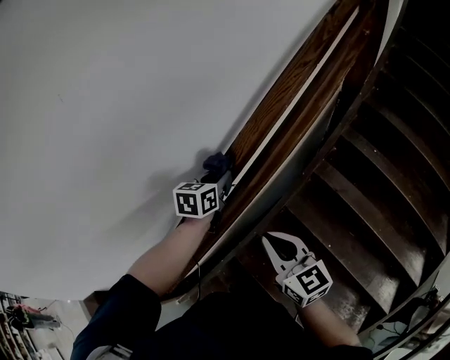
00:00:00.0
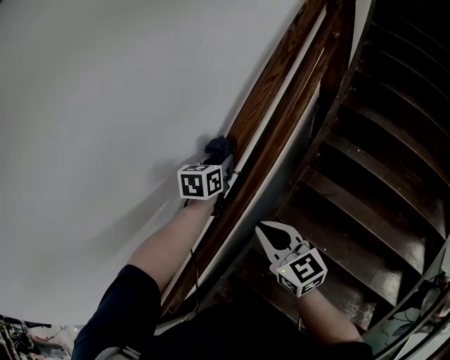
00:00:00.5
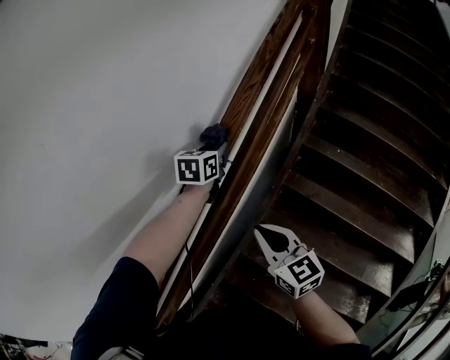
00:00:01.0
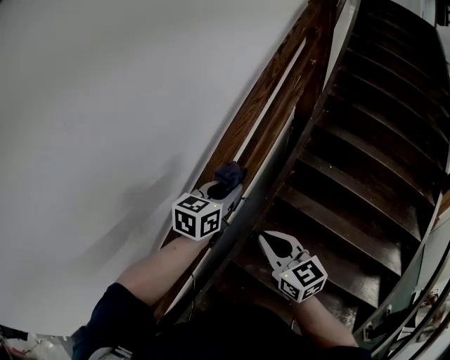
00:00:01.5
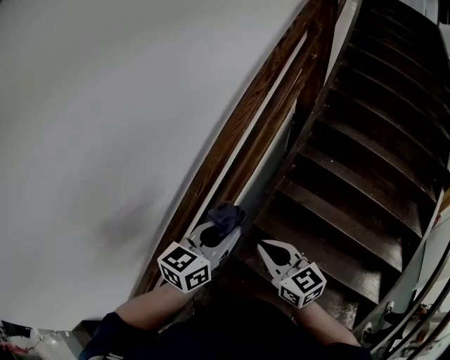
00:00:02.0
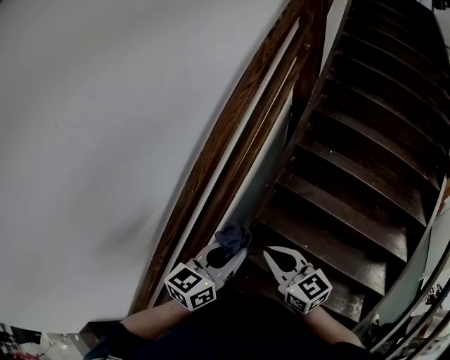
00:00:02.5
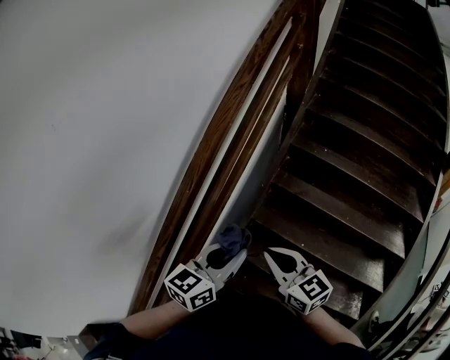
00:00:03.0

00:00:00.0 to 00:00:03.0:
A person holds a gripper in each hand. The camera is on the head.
00:00:00.0 to 00:00:01.5: The right gripper travels upward and to the right by some 10 cm. Meanwhile the left gripper moves upward, to the right and backward, approximately 20 cm, and turns by roughly 30 degrees.
00:00:01.5 to 00:00:03.0: The left gripper is displaced backward by approximately 20 cm. Meanwhile the right gripper shifts roughly 10 cm backward.

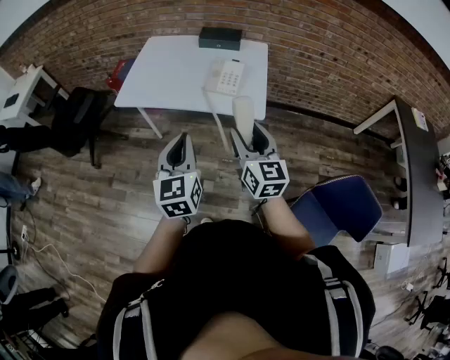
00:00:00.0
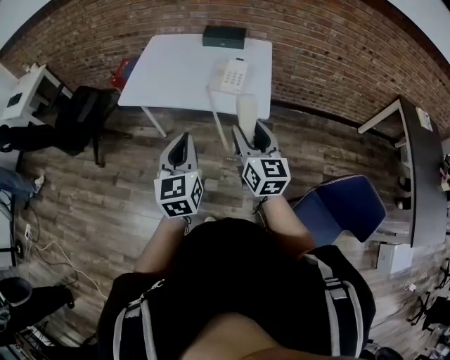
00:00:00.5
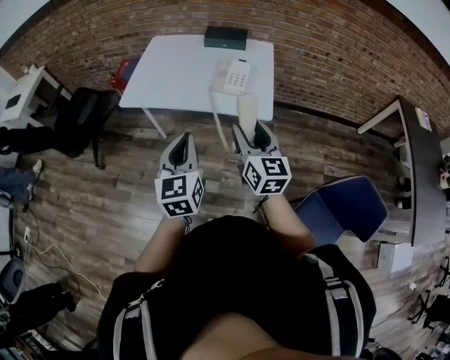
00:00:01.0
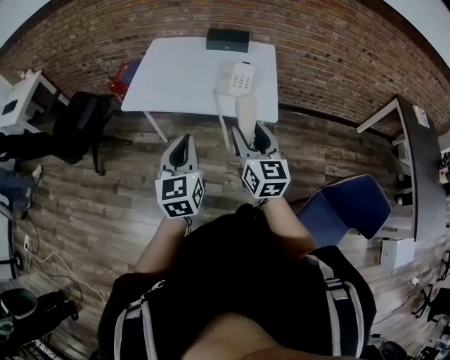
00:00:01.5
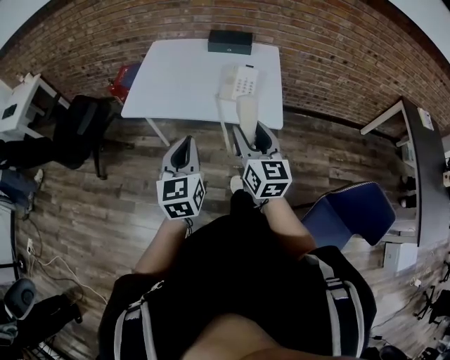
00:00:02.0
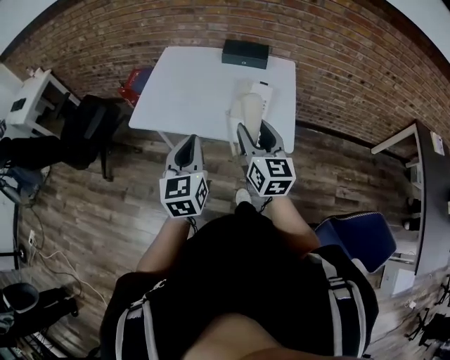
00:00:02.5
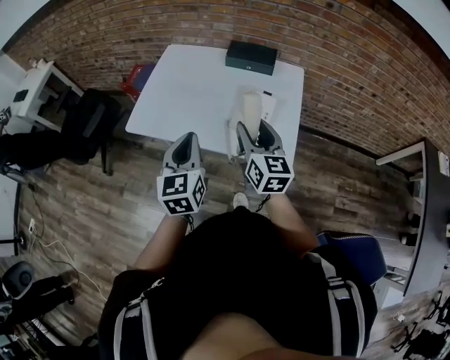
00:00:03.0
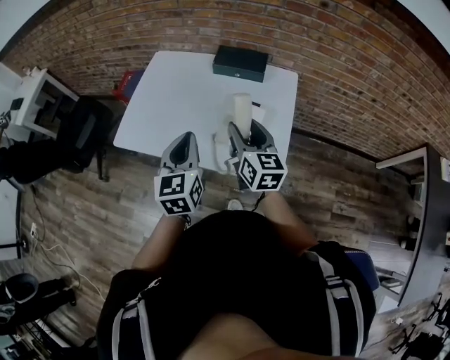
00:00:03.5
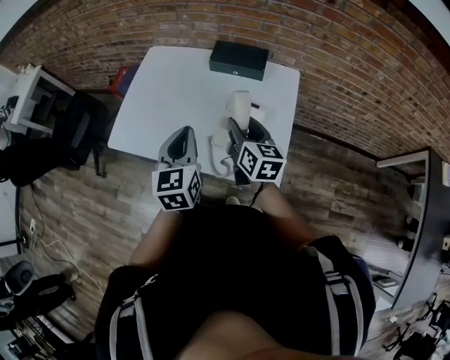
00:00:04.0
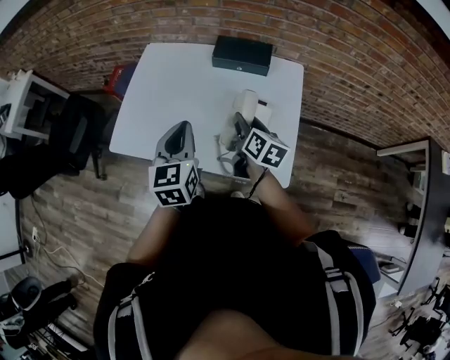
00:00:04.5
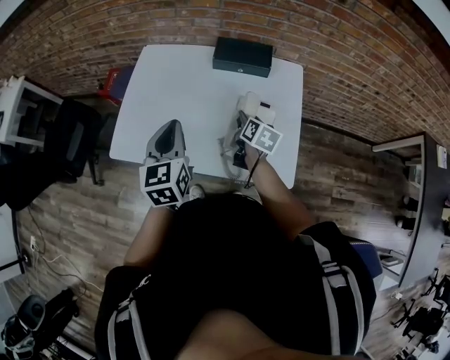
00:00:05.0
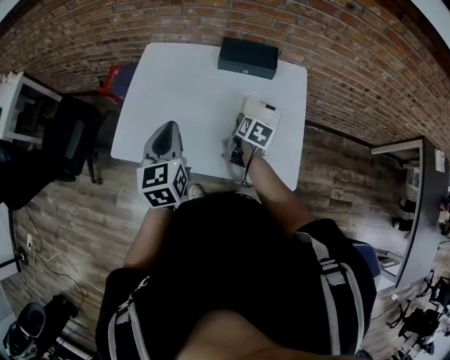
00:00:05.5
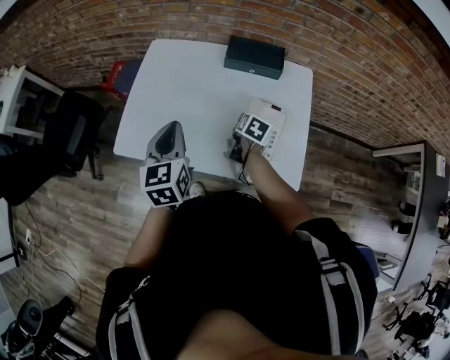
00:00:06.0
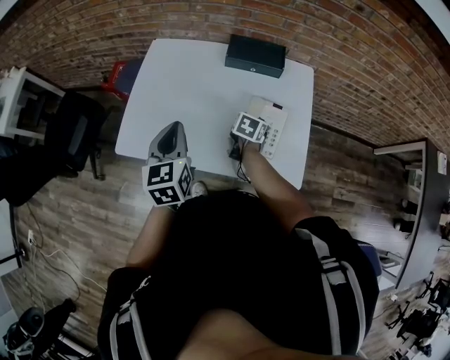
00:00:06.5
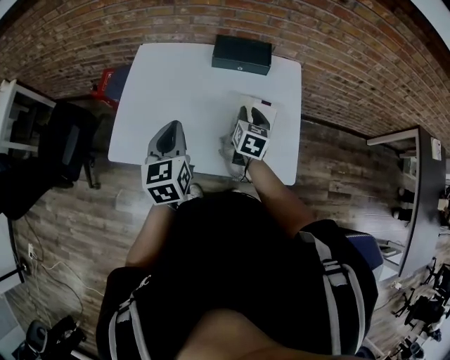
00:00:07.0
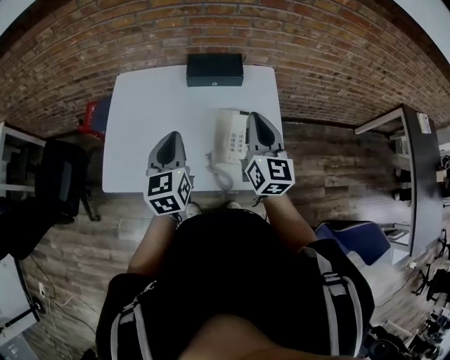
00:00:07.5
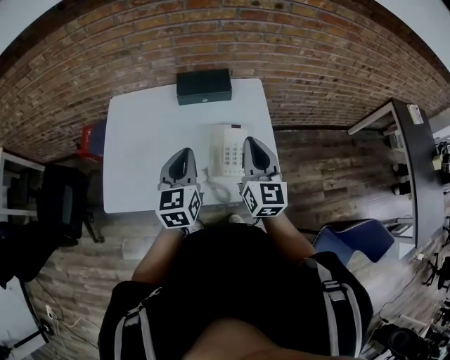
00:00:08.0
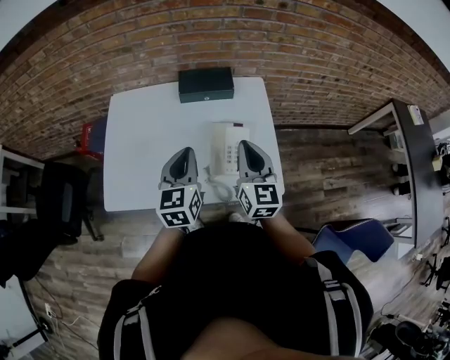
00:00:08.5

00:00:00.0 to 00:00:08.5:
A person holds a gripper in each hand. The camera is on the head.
00:00:00.0 to 00:00:02.0: The grippers both shift forward and to the left by approximately 10 cm.
00:00:02.0 to 00:00:04.0: Both grippers move forward, approximately 30 cm. The right gripper rotates some 20 degrees.
00:00:04.0 to 00:00:06.5: The left gripper is displaced to the left by roughly 15 cm; the right gripper heads downward and forward, covering roughly 20 cm, and angles its fingers downward, by about 40 degrees.
00:00:06.5 to 00:00:08.5: The left gripper heads to the right, covering some 10 cm, and changes its angle by approximately 20 degrees, while the right gripper goes about 25 cm upward, tips its fingers upward by approximately 50 degrees, and closes up.

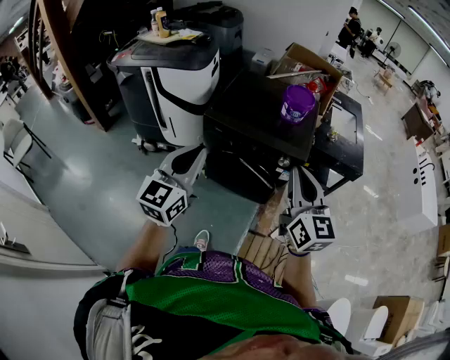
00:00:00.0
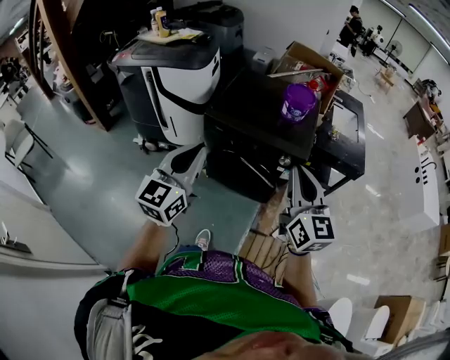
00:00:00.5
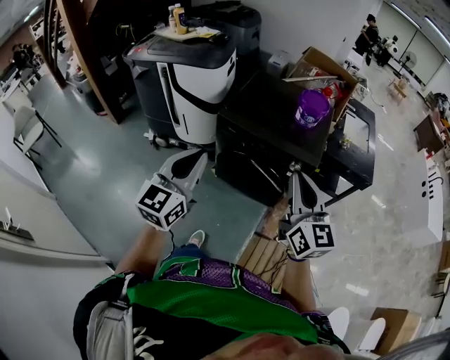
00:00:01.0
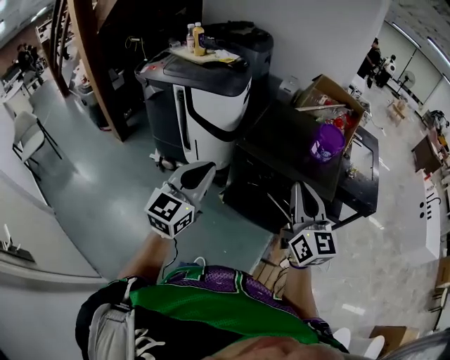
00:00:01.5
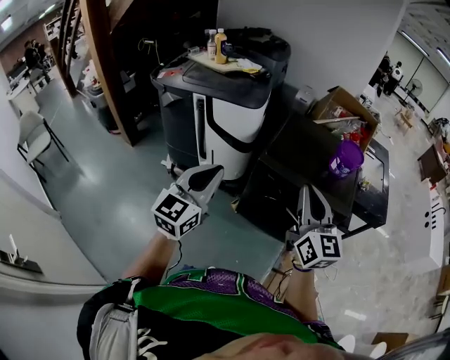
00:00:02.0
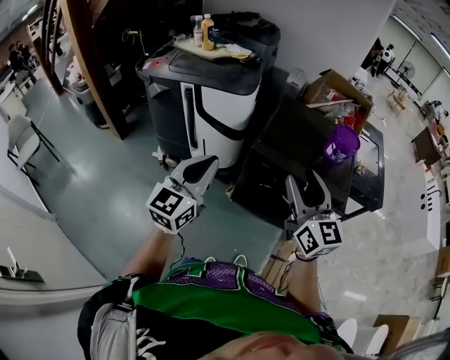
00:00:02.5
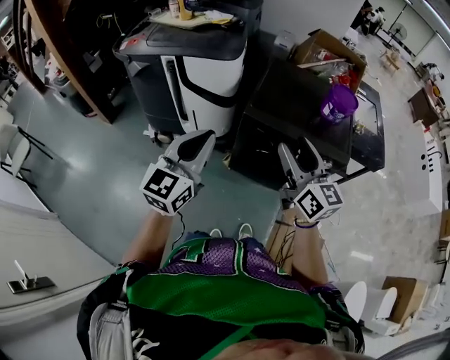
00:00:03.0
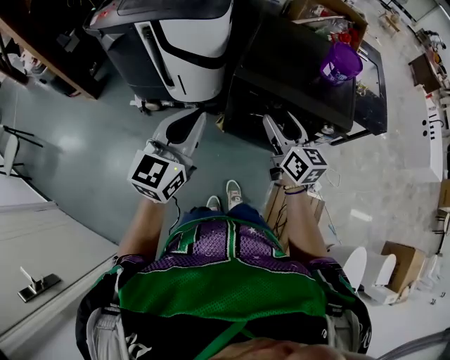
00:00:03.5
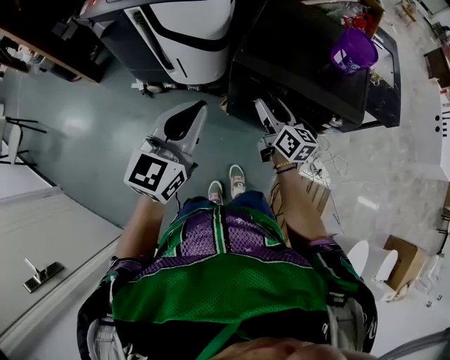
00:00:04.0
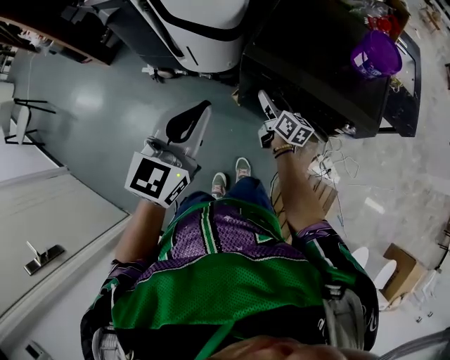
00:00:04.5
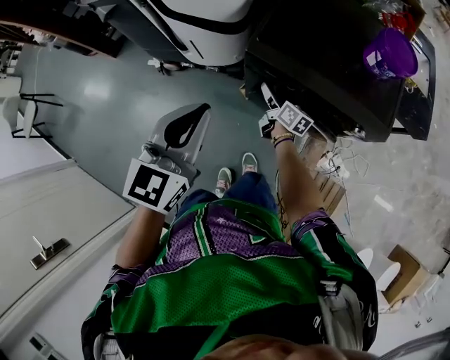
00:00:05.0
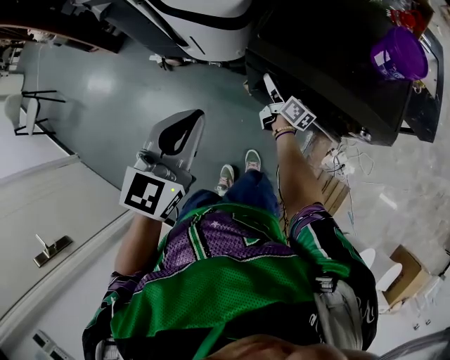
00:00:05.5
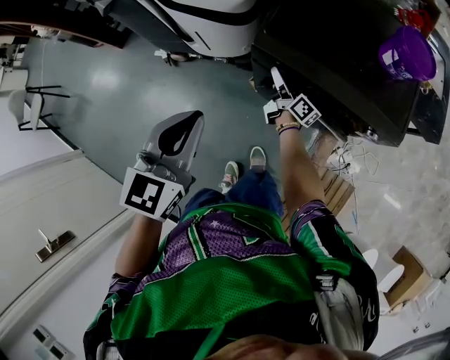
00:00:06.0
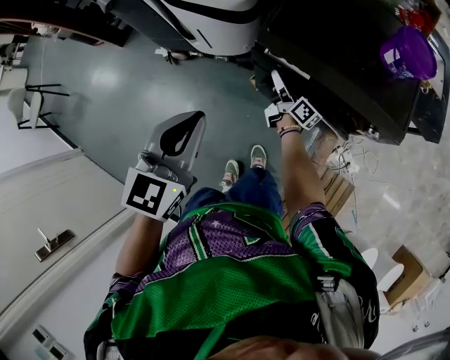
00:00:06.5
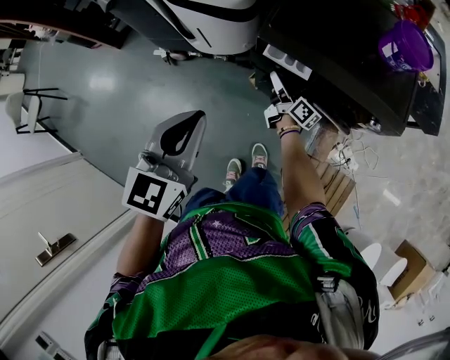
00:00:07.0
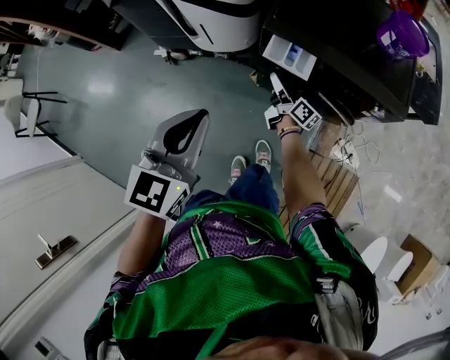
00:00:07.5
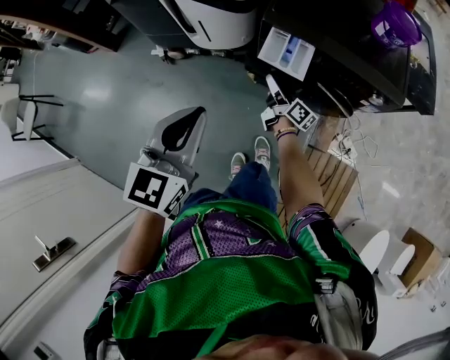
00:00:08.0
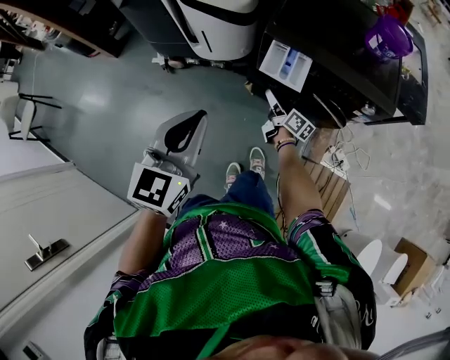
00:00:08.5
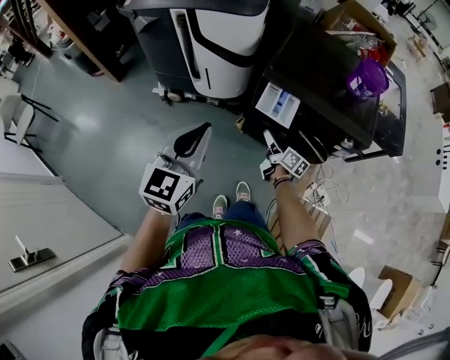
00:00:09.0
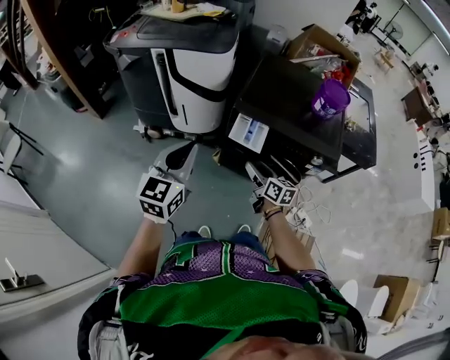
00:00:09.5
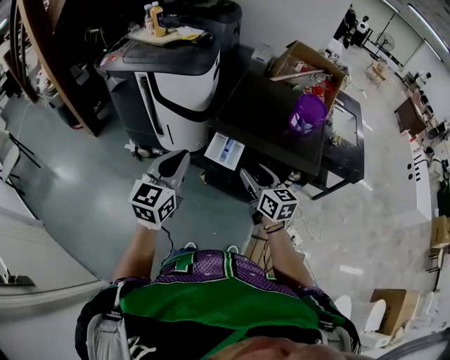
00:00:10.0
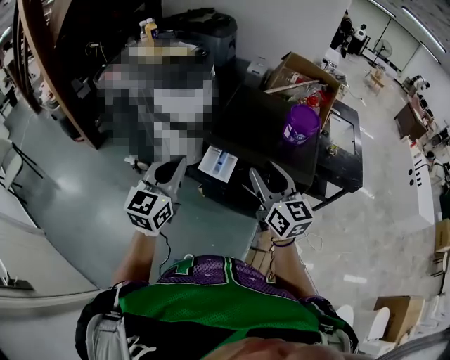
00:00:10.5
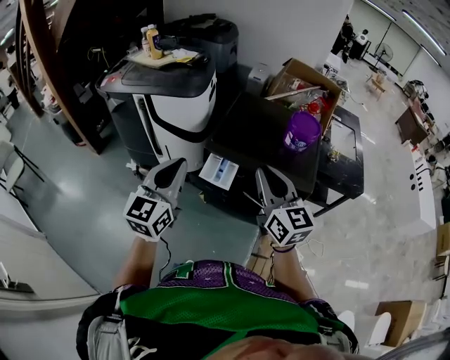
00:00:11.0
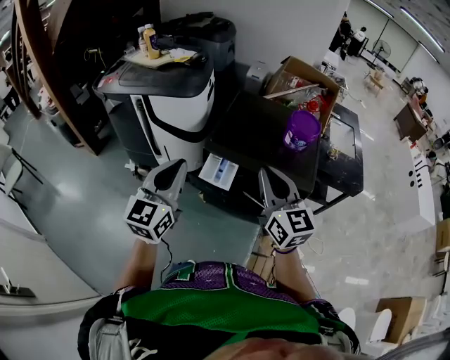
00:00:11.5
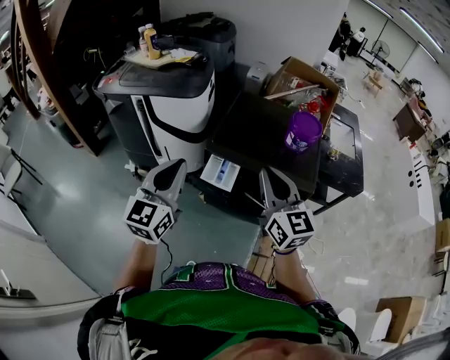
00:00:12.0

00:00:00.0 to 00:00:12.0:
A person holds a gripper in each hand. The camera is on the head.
00:00:00.0 to 00:00:02.0: The left gripper travels to the left by some 25 cm. Meanwhile the right gripper heads to the left and forward, covering roughly 25 cm.
00:00:02.0 to 00:00:04.0: The left gripper travels downward, forward and to the right by approximately 15 cm, while the right gripper moves downward and forward, approximately 35 cm, changes its angle by some 40 degrees, and opens its fingers.
00:00:04.0 to 00:00:06.0: The left gripper heads downward, covering approximately 10 cm, while the right gripper goes roughly 25 cm downward and forward, and rotates roughly 30 degrees.
00:00:06.0 to 00:00:08.0: The right gripper goes about 15 cm backward, while the left gripper is displaced backward and to the left by roughly 15 cm.
00:00:08.0 to 00:00:10.0: The left gripper goes approximately 15 cm upward and to the right. The right gripper is displaced upward by roughly 30 cm, and twists roughly 40 degrees counterclockwise, seen from behind.
00:00:10.0 to 00:00:12.0: The right gripper is displaced upward by roughly 15 cm, turns by some 20 degrees, and closes its fingers. Meanwhile the left gripper heads upward, covering about 5 cm.

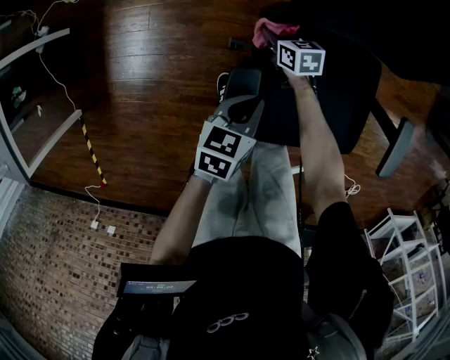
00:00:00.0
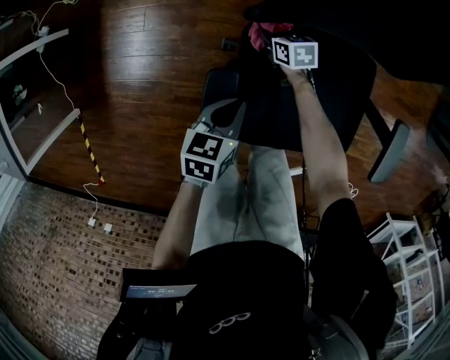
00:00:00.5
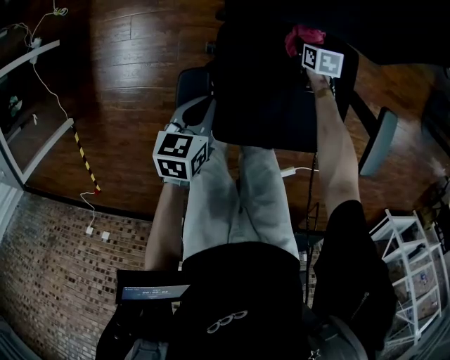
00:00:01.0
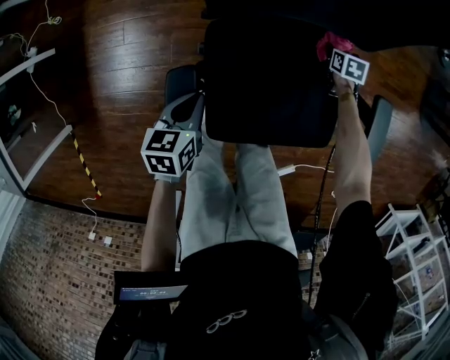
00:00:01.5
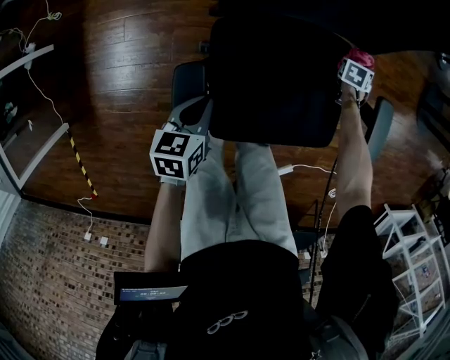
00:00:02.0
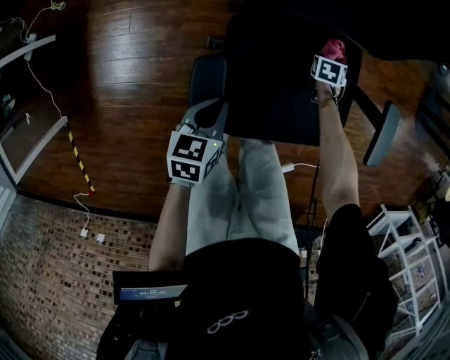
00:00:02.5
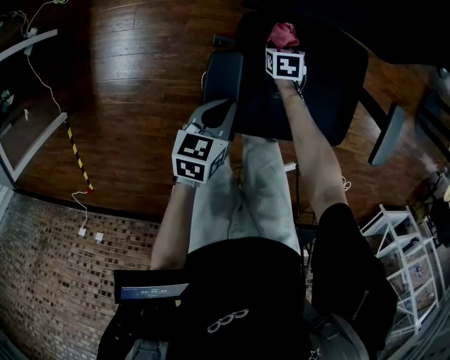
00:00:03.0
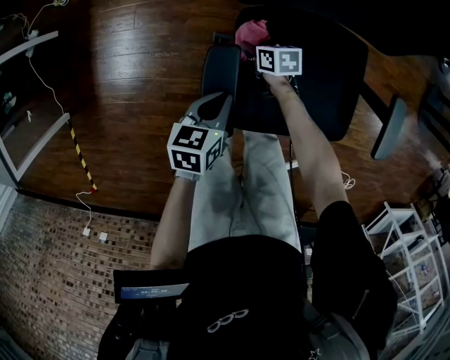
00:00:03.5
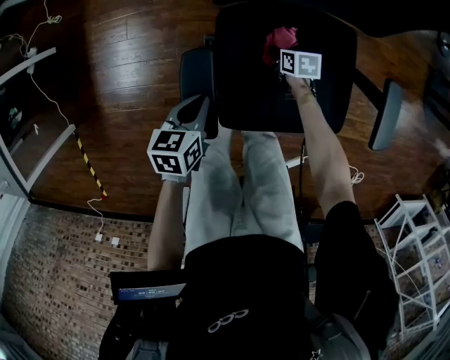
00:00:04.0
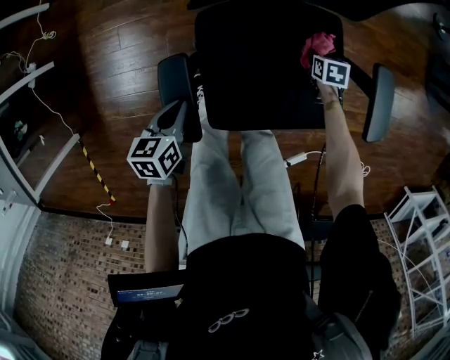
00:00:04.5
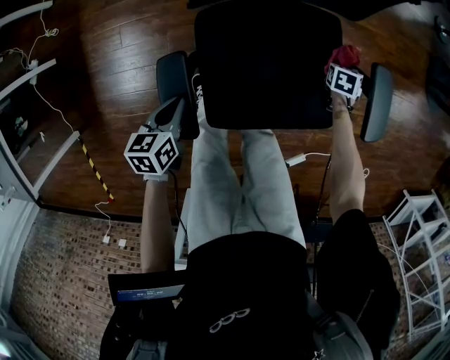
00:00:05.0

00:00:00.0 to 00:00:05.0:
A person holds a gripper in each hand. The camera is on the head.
00:00:00.0 to 00:00:02.5: The right gripper moves roughly 30 cm, and changes its angle by approximately 50 degrees.
